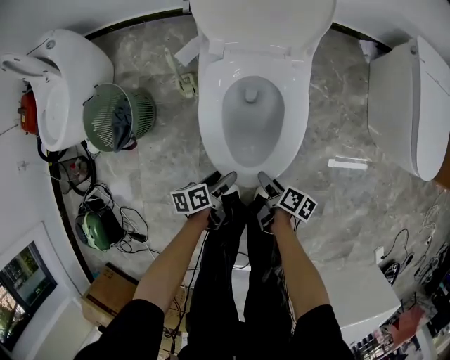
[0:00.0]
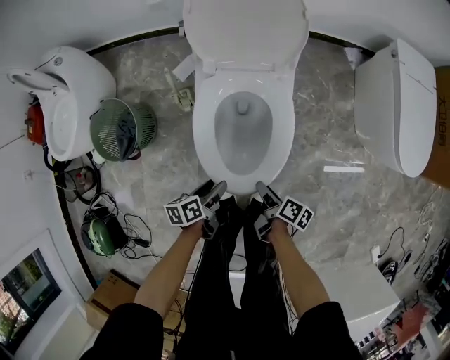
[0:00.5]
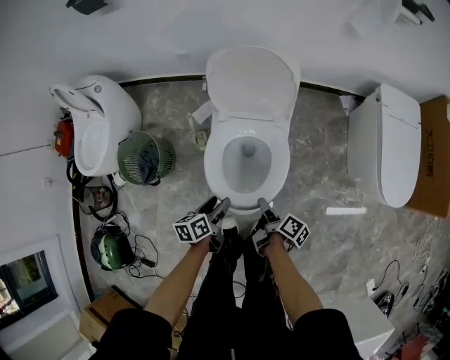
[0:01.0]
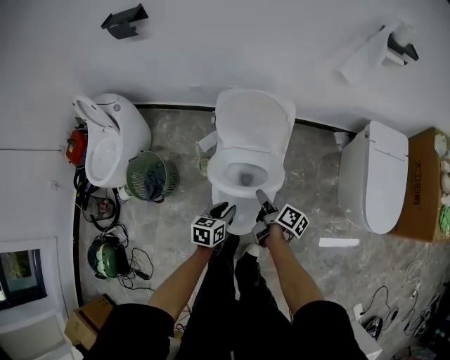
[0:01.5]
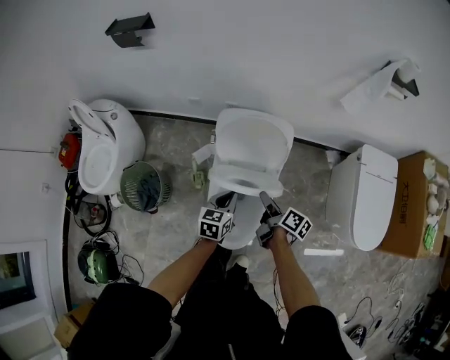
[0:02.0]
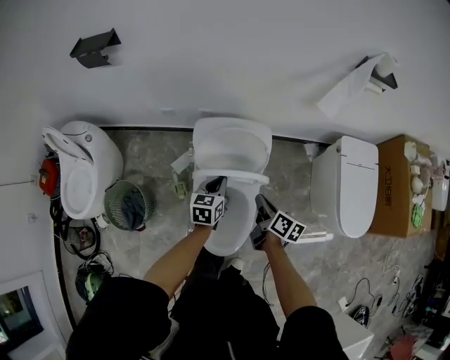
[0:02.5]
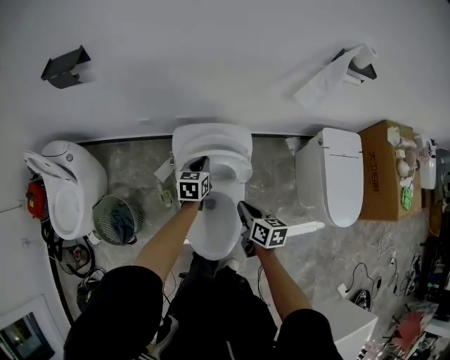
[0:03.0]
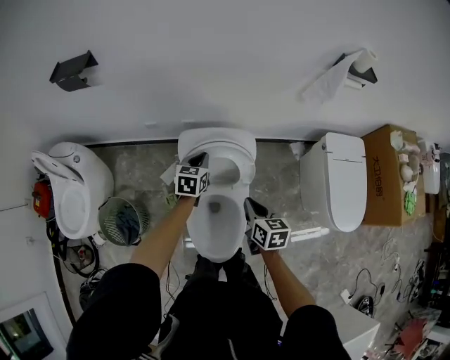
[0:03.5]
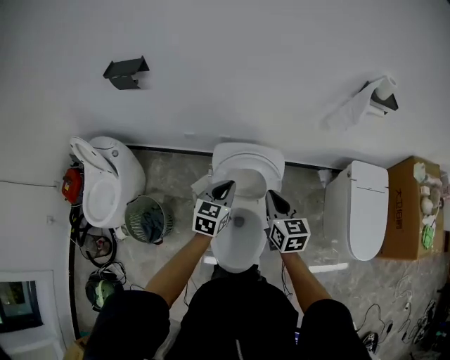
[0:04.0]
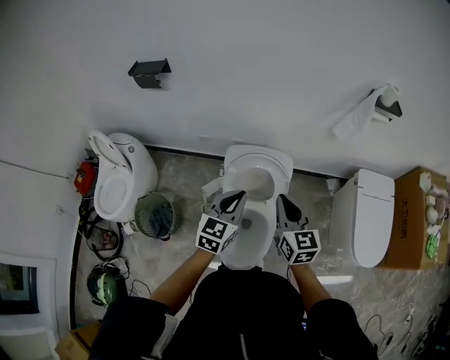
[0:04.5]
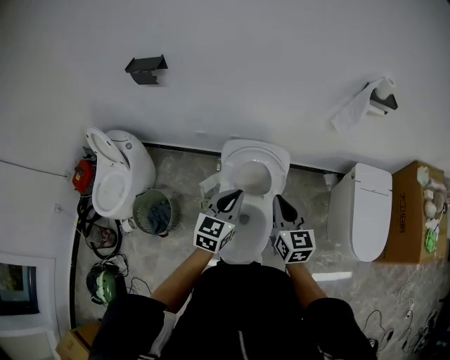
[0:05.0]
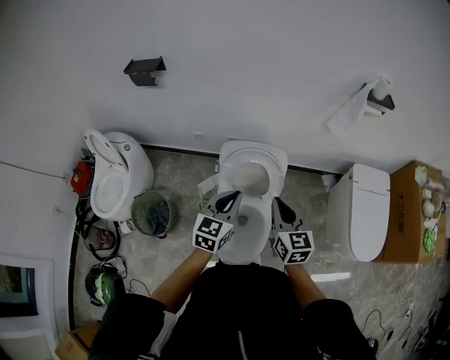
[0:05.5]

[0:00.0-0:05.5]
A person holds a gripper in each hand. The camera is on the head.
0:00.0 to 0:02.0: The two grippers go some 50 cm upward and forward. The left gripper twists some 40 degrees clockwise, seen from behind, and closes; the right gripper swivels roughly 30 degrees.
0:02.0 to 0:03.5: The left gripper is displaced forward by about 25 cm. Meanwhile the right gripper goes some 10 cm upward and forward, twists about 40 degrees counterclockwise, seen from behind, and closes its fingers.
0:03.5 to 0:05.5: The left gripper is displaced backward and upward by approximately 30 cm, while the right gripper shifts about 15 cm upward, and changes its angle by about 30 degrees.

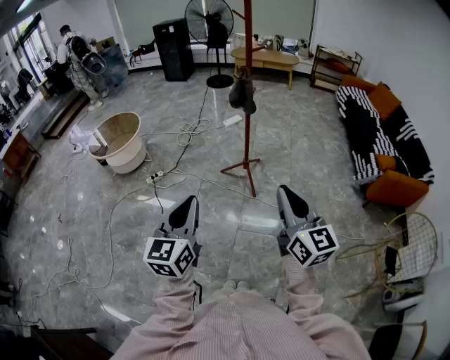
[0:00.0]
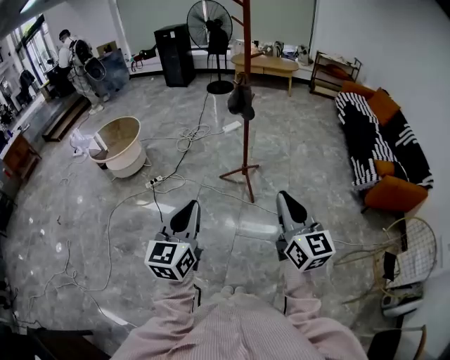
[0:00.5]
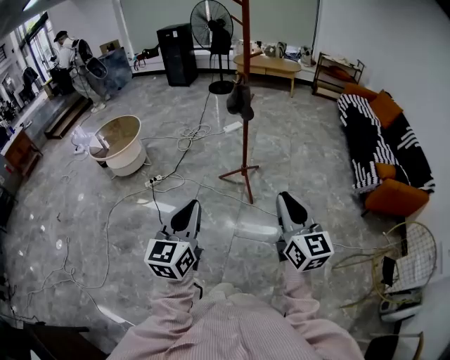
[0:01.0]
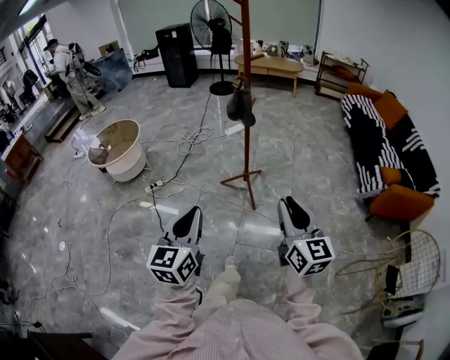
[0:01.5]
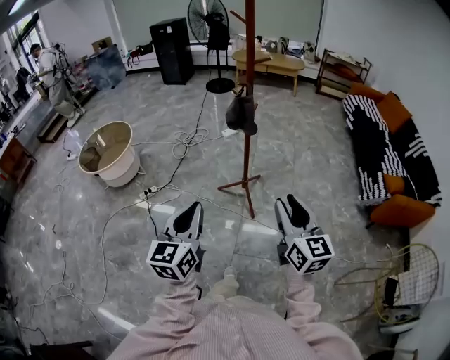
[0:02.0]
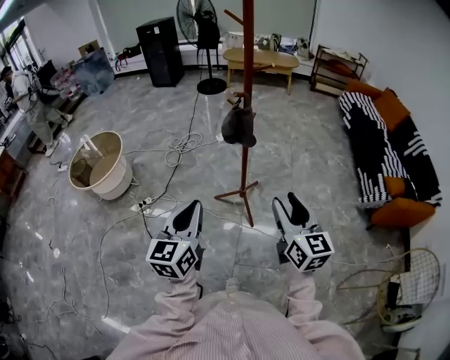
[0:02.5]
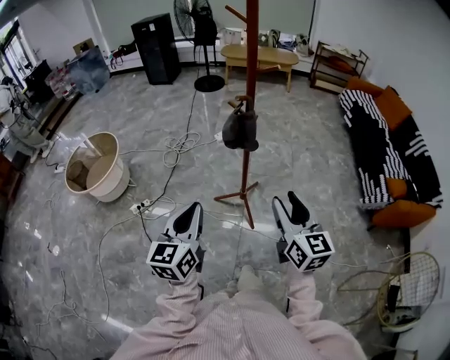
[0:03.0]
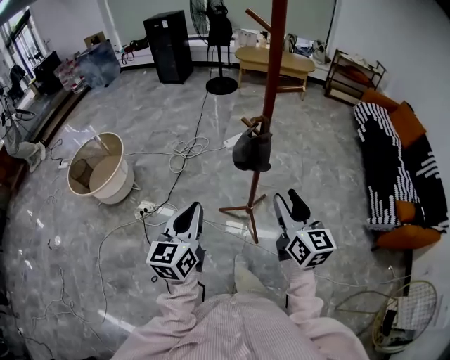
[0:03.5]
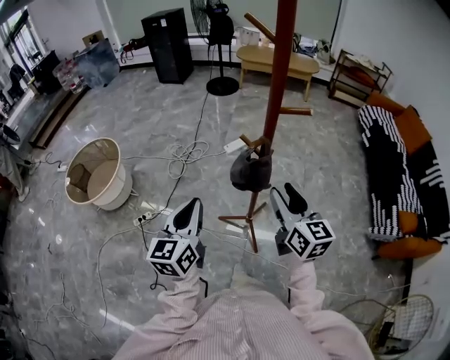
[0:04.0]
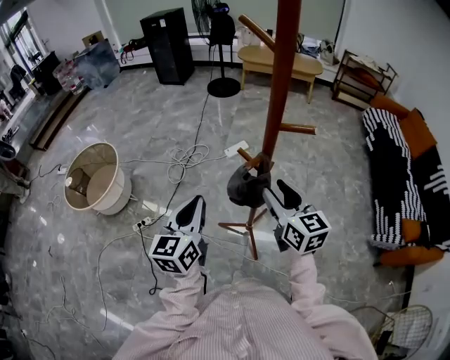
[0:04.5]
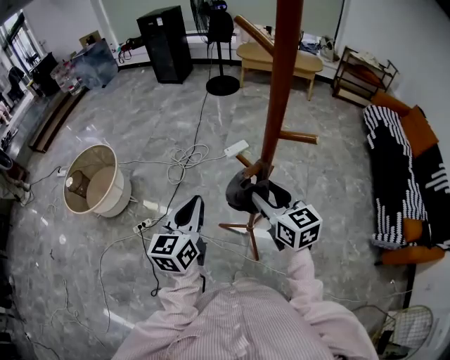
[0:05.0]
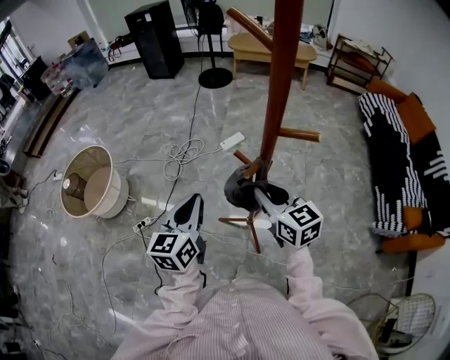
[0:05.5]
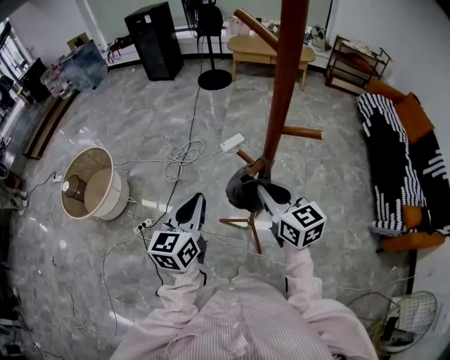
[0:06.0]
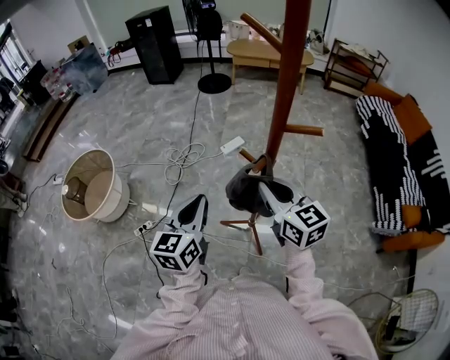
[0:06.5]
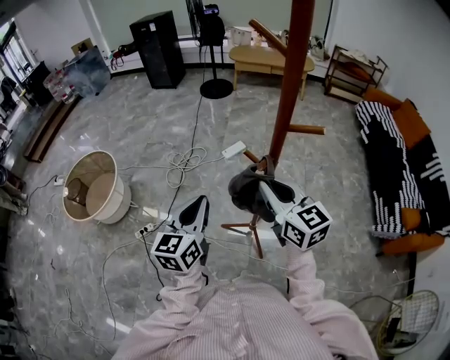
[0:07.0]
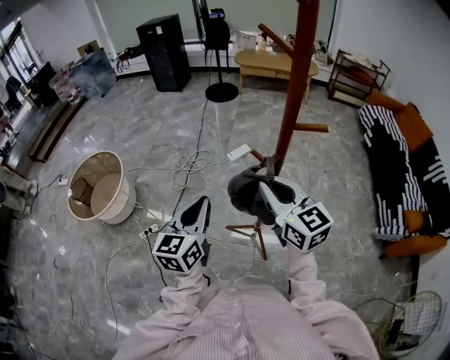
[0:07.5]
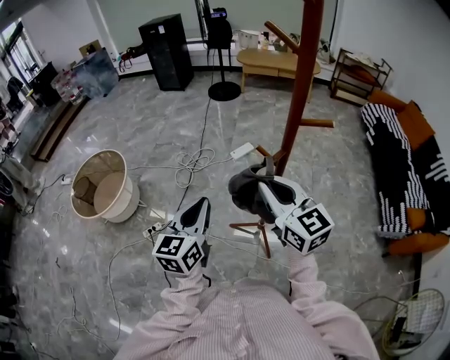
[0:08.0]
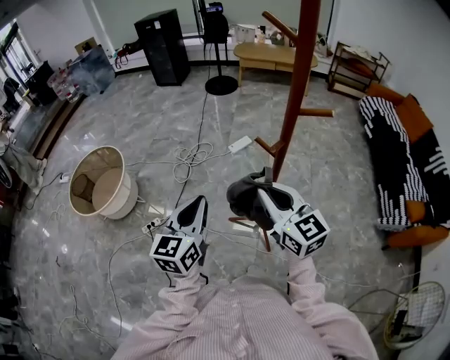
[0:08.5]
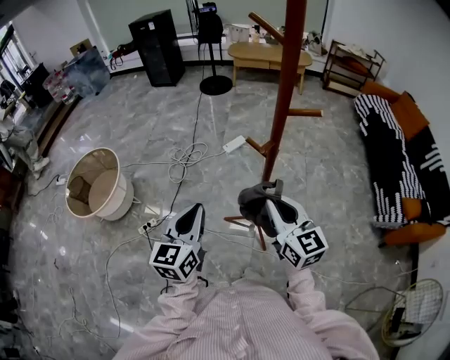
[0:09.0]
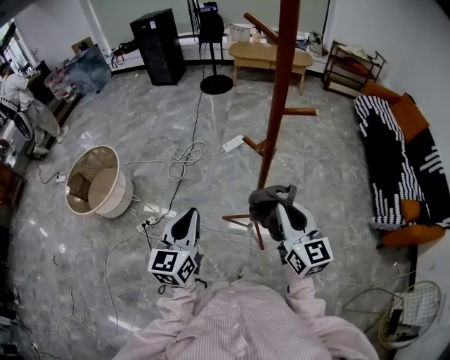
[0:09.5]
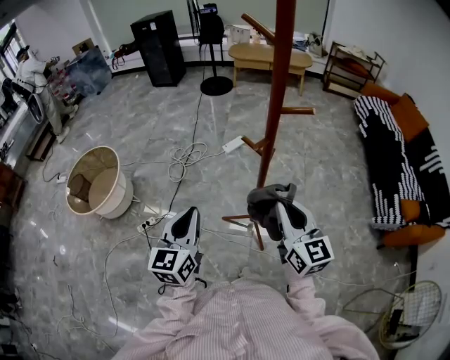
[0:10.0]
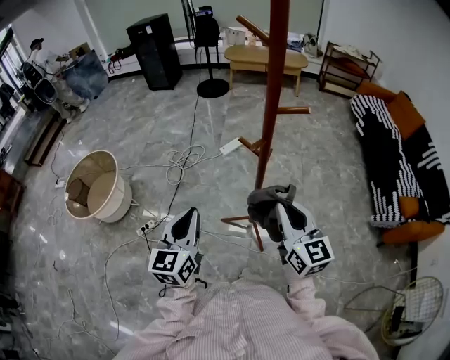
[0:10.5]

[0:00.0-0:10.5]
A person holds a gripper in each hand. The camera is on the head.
0:00.0 to 0:02.0: Both grippers travel together forward, about 20 cm. The right gripper opens its fingers.
0:02.0 to 0:04.0: Both grippers travel together forward, approximately 40 cm.
0:04.0 to 0:06.5: Both grippers move forward, roughly 10 cm. The right gripper closes up.
0:06.5 to 0:08.5: The right gripper travels backward and to the left by about 10 cm; the left gripper goes some 10 cm to the left and backward.
0:08.5 to 0:10.5: The right gripper heads to the right and backward, covering approximately 10 cm.

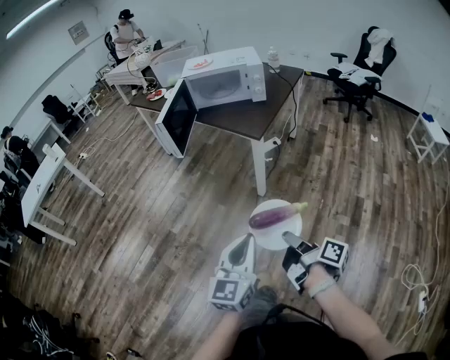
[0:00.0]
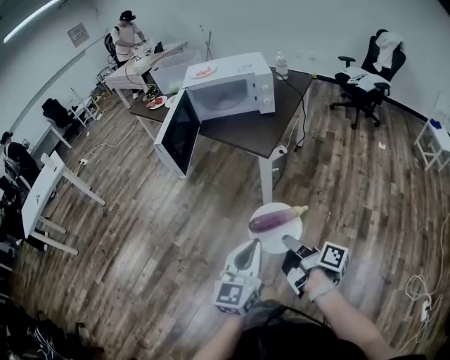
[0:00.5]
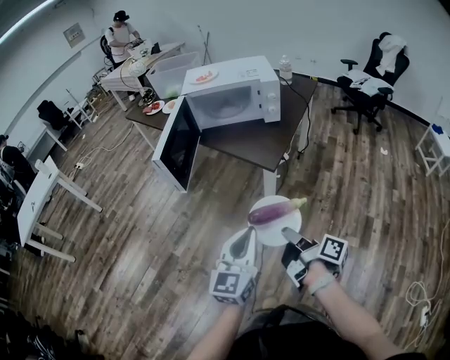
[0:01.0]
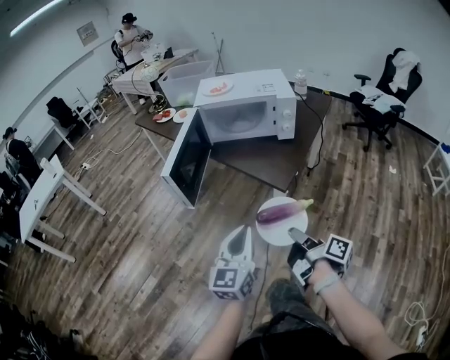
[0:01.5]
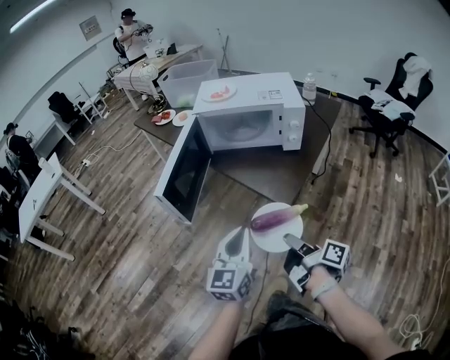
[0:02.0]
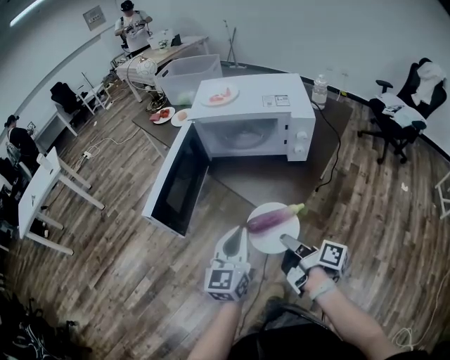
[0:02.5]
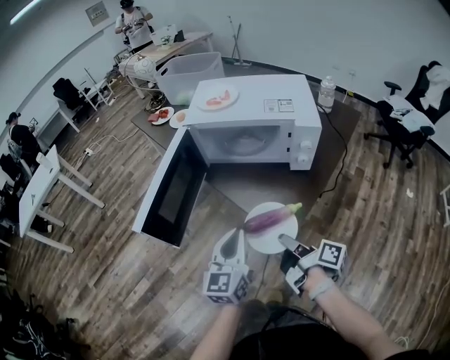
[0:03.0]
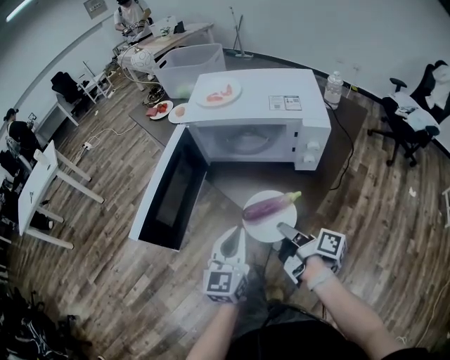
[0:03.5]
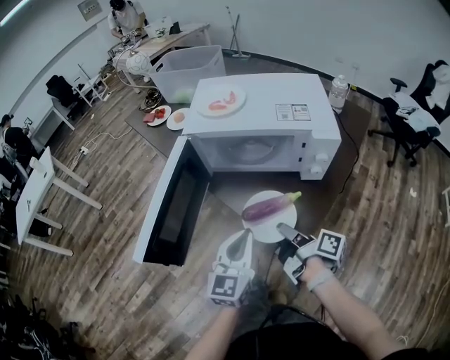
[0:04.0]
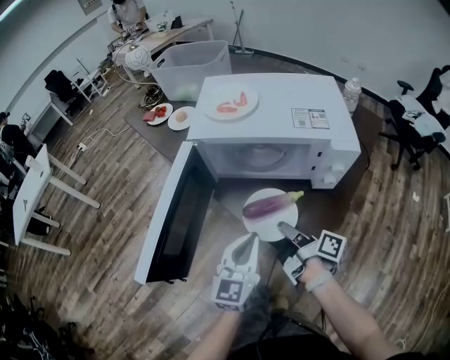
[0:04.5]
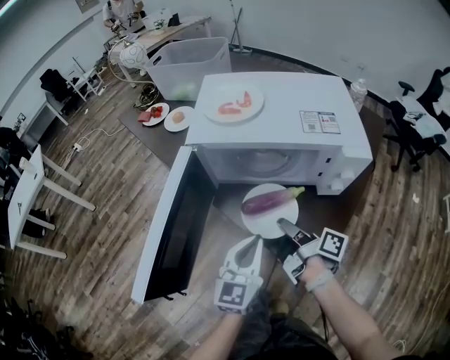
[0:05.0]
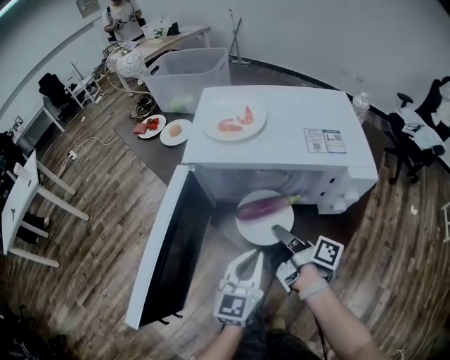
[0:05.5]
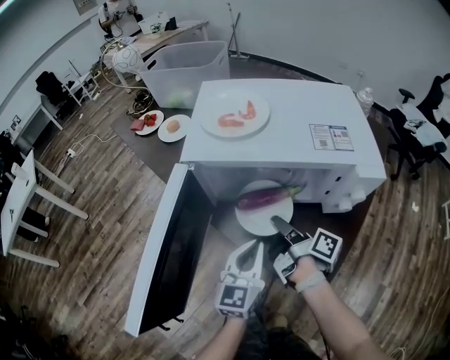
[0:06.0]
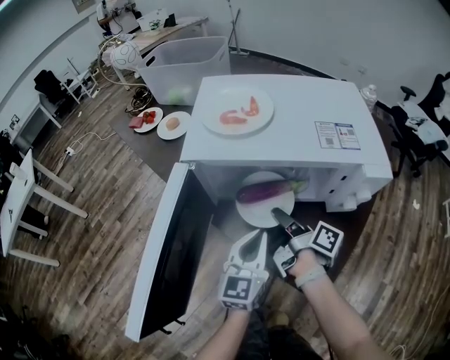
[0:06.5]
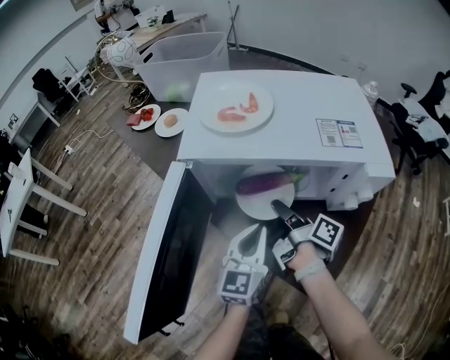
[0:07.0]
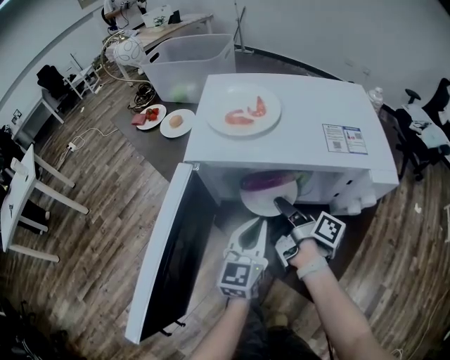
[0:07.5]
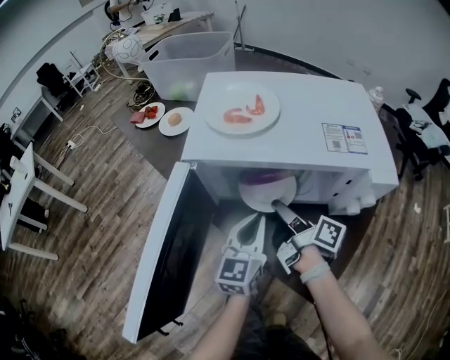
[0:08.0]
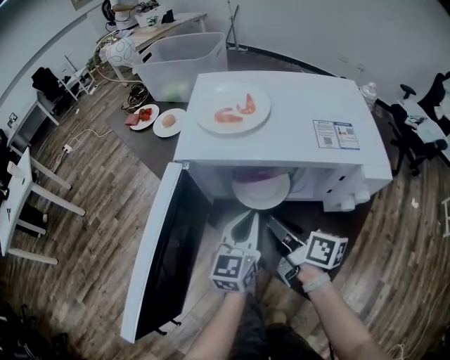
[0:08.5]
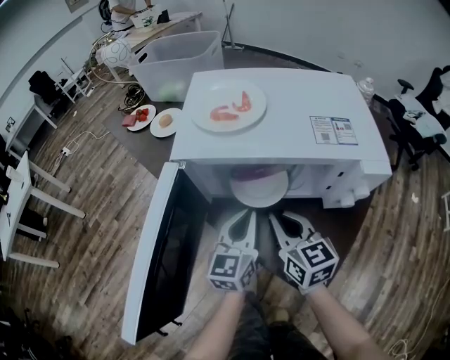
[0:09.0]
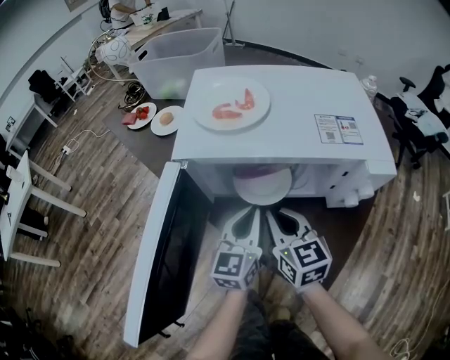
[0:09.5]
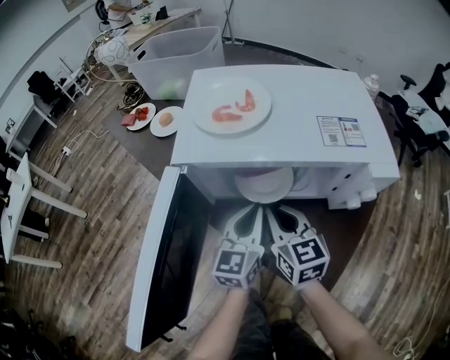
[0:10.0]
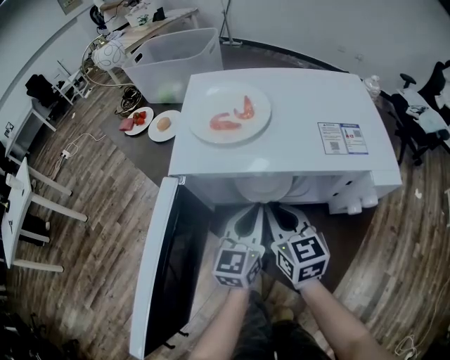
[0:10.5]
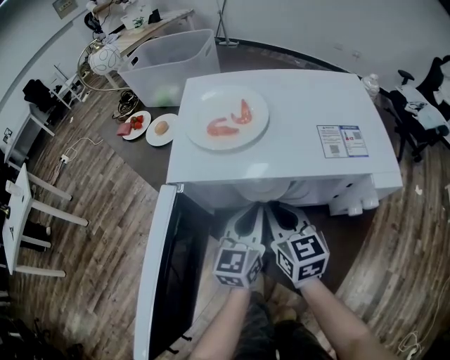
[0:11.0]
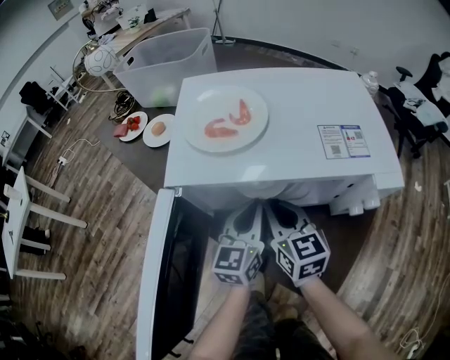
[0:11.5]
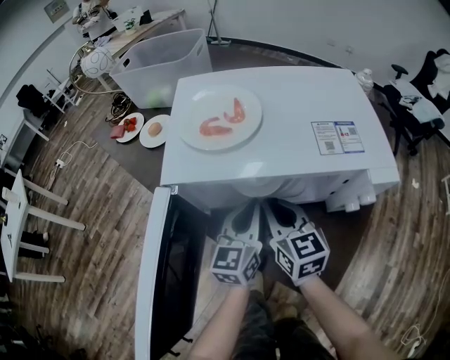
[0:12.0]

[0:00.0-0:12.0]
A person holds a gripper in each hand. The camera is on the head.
0:00.0 to 0:02.0: Both grippers move forward, about 35 cm.
0:02.0 to 0:04.0: The grippers both shift forward by about 20 cm.
0:04.0 to 0:06.0: The left gripper travels forward and downward by about 15 cm; the right gripper is displaced forward by about 15 cm.
0:06.0 to 0:08.0: The right gripper opens, while the left gripper is displaced forward by some 5 cm.
0:08.0 to 0:10.0: The right gripper rotates around the line of its fingers by approximately 70 degrees, counterclockwise from behind, and closes up.
0:10.0 to 0:12.0: The grippers stay close to where they were, moving slightly.
